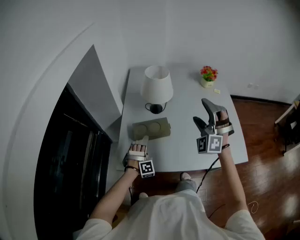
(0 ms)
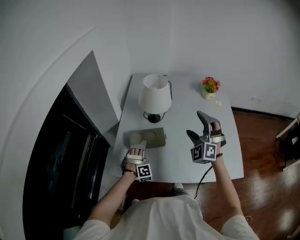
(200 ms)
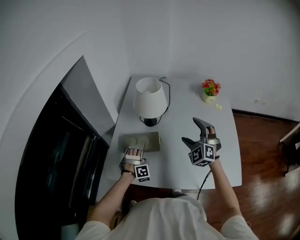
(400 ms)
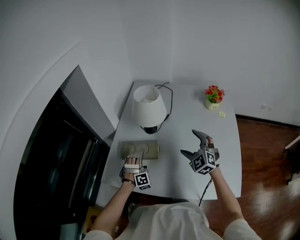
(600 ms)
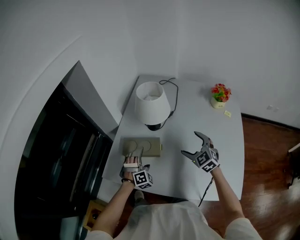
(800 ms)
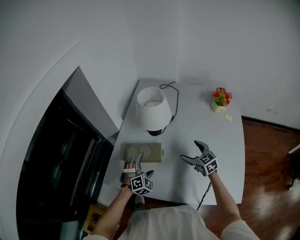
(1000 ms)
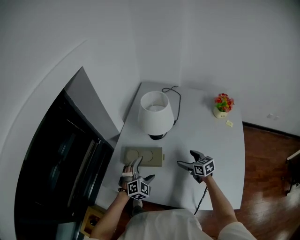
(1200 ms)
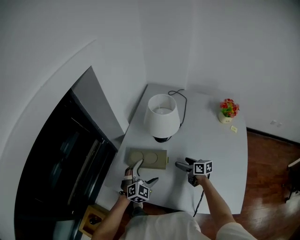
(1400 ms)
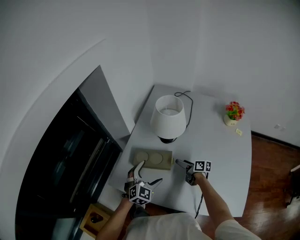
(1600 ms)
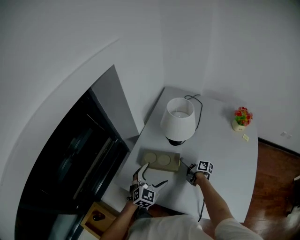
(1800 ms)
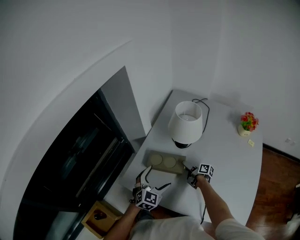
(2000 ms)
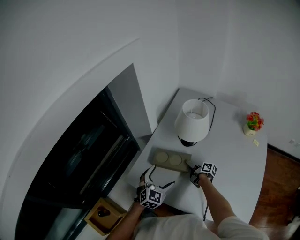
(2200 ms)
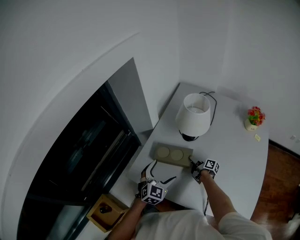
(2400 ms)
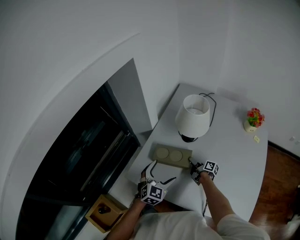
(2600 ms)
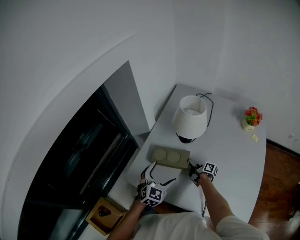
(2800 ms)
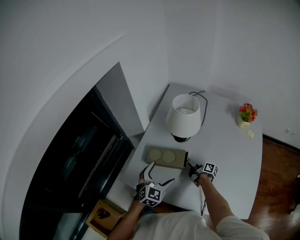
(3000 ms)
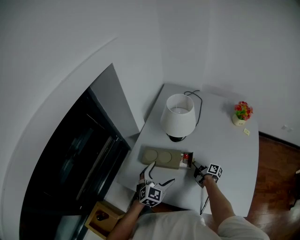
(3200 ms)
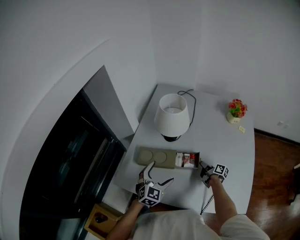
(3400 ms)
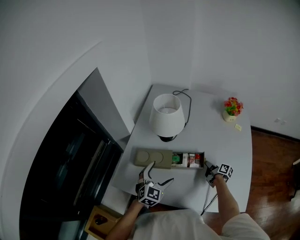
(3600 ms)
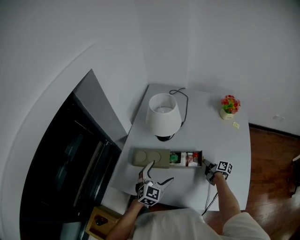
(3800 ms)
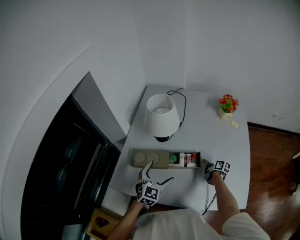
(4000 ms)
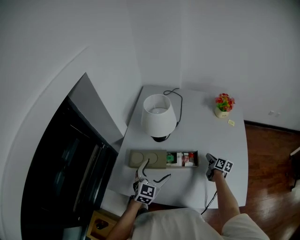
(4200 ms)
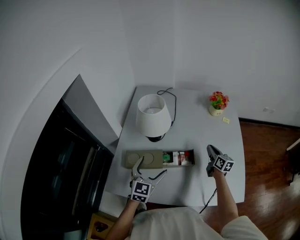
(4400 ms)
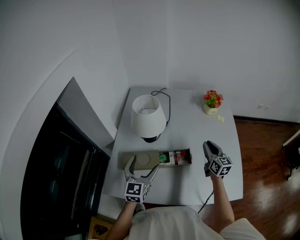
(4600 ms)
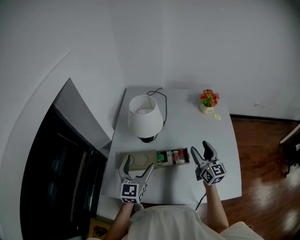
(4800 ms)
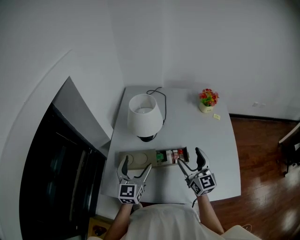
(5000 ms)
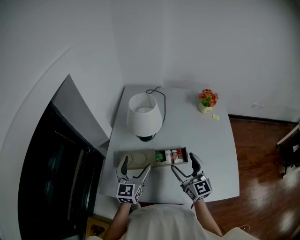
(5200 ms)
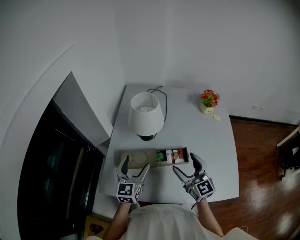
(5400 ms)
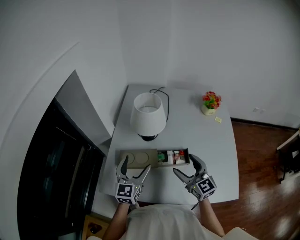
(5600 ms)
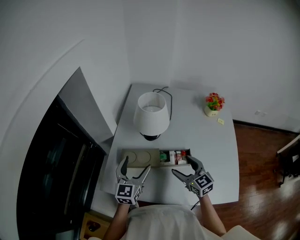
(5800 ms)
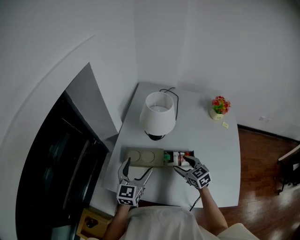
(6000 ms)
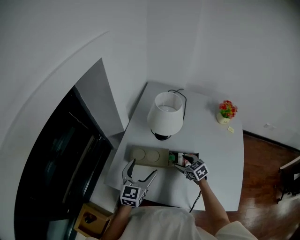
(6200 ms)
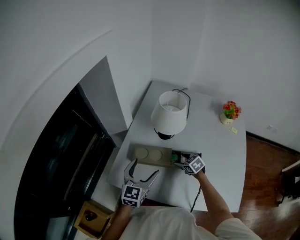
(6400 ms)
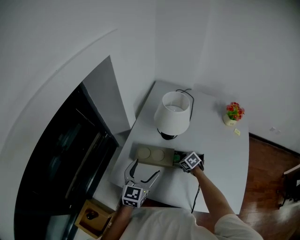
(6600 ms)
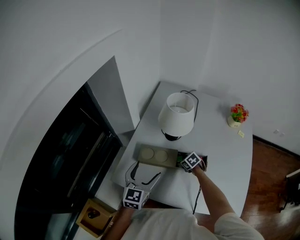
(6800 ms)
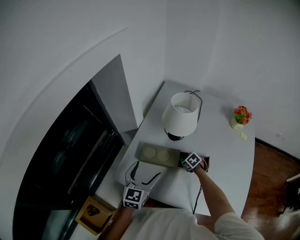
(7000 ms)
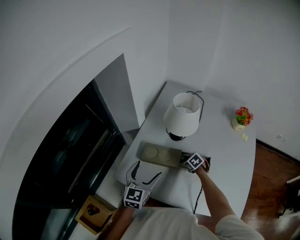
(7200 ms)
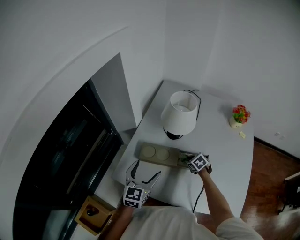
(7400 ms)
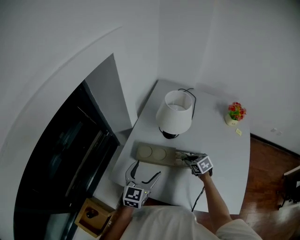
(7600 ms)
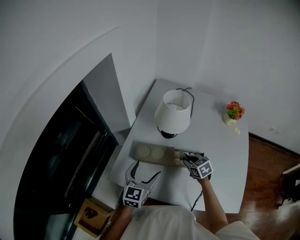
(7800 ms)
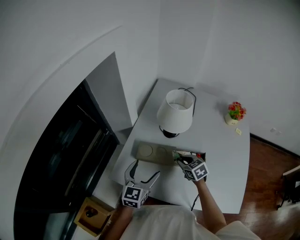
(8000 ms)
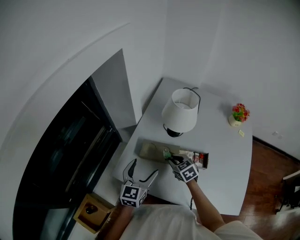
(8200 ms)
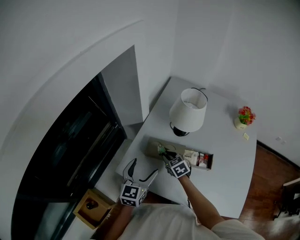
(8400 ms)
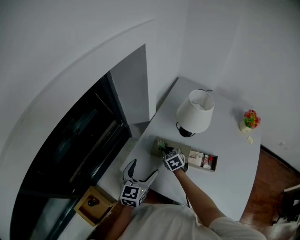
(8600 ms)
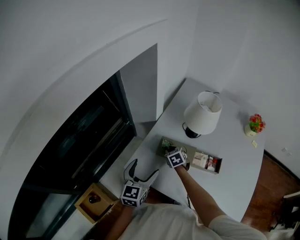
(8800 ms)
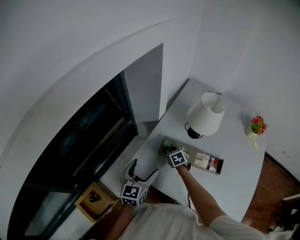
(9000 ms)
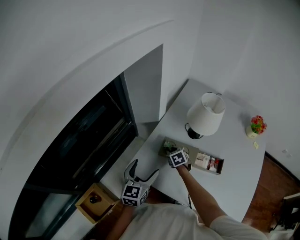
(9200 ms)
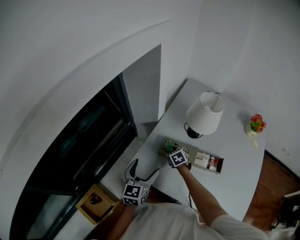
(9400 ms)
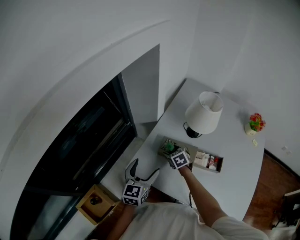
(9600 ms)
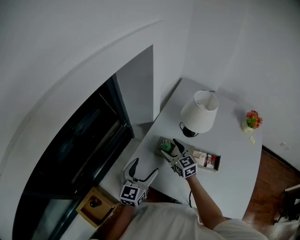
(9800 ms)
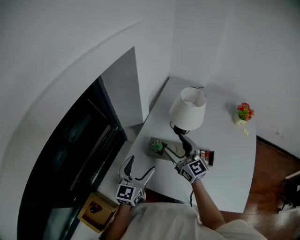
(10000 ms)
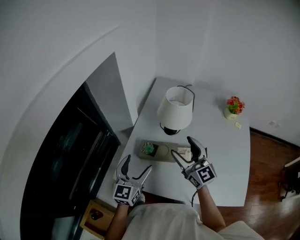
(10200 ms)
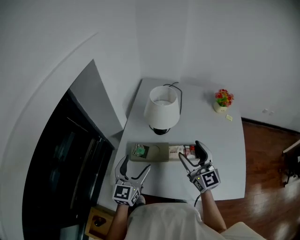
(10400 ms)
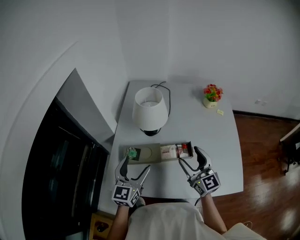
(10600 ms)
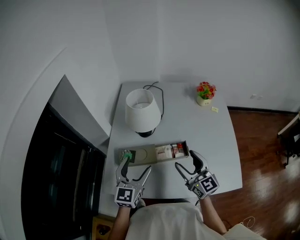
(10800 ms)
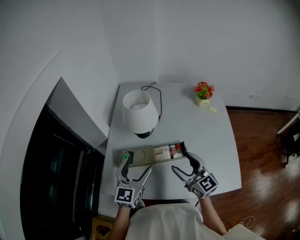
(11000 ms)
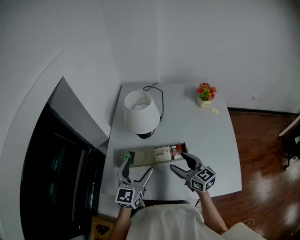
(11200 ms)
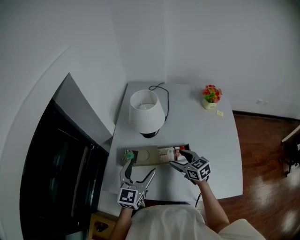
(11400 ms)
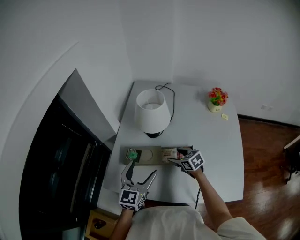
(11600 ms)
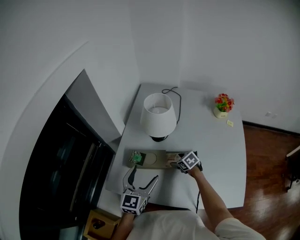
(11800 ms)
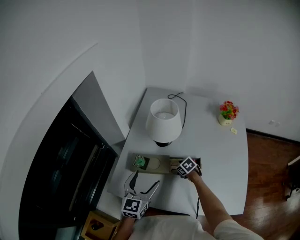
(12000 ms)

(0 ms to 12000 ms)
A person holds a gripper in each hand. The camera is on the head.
0 ms - 1600 ms: The right gripper is displaced downward by some 35 cm, and twists approximately 120 degrees clockwise, seen from behind. The left gripper goes approximately 10 cm upward and to the right, and rotates around the line of its fingers by some 60 degrees, counterclockwise from behind.
1600 ms - 3000 ms: The right gripper rotates some 20 degrees, and closes up.
3000 ms - 4400 ms: The right gripper shifts about 30 cm to the right and upward, and swivels about 50 degrees. Meanwhile the left gripper is displaced to the right by about 5 cm.
4400 ms - 6000 ms: The left gripper goes about 10 cm to the left. The right gripper is displaced to the left by approximately 20 cm, turns by some 50 degrees, and opens.
6000 ms - 7600 ms: The right gripper moves downward, some 10 cm, turns by approximately 20 degrees, and closes.
7600 ms - 9000 ms: The left gripper shifts roughly 15 cm to the left; the right gripper travels to the left by roughly 25 cm.
9000 ms - 10400 ms: The right gripper is displaced upward, to the right and backward by roughly 35 cm, angles its fingers upward, by some 60 degrees, and opens up. The left gripper heads to the right and upward, covering some 10 cm, and turns by roughly 20 degrees.
10400 ms - 12000 ms: The left gripper is displaced to the right by about 5 cm. The right gripper moves downward, roughly 35 cm, and tips its fingers downward by approximately 70 degrees.

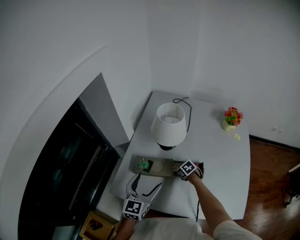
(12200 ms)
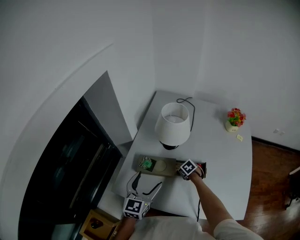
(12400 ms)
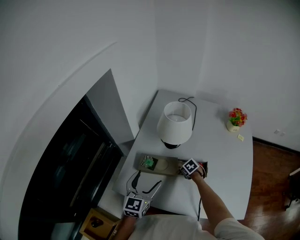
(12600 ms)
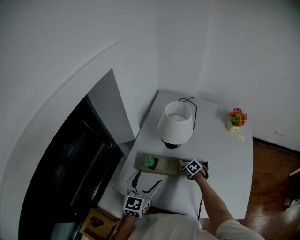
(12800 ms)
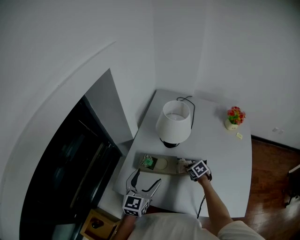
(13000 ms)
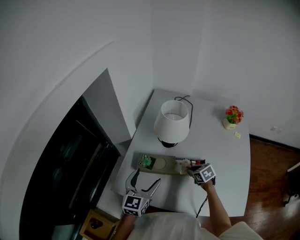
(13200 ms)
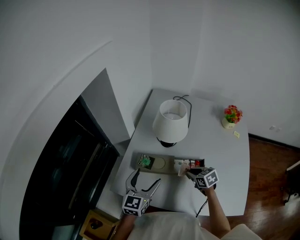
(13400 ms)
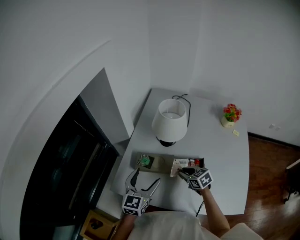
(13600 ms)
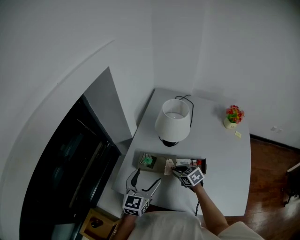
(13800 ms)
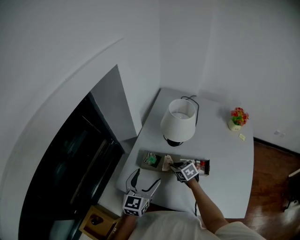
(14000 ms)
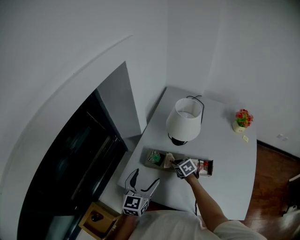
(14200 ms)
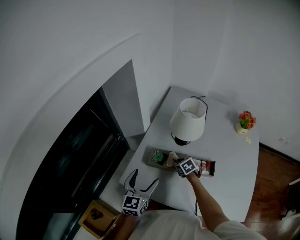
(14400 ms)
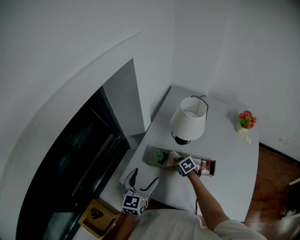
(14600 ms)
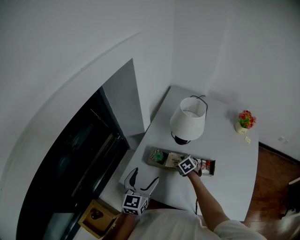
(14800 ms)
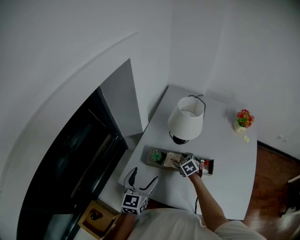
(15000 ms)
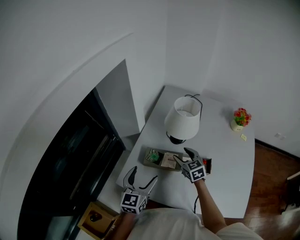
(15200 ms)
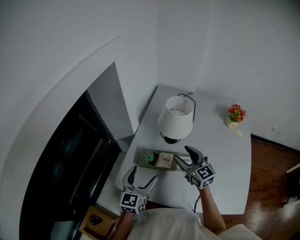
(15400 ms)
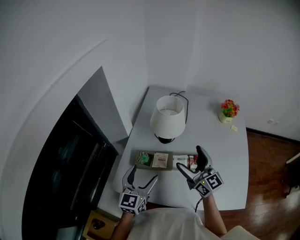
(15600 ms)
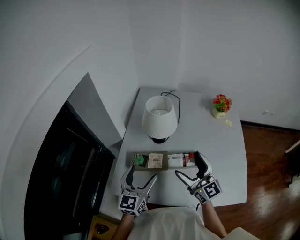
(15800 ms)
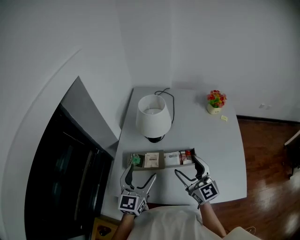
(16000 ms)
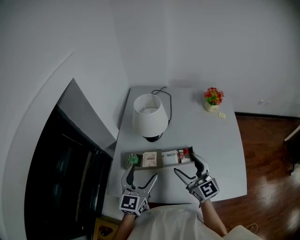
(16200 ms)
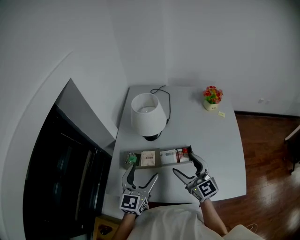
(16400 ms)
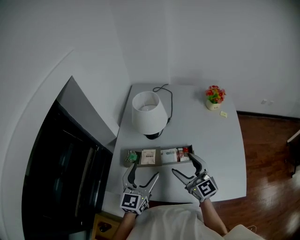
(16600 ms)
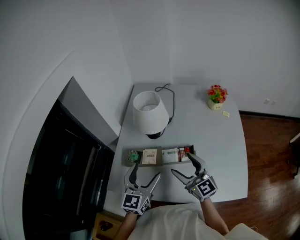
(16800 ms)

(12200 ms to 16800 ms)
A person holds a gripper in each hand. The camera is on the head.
12200 ms - 13800 ms: The right gripper shifts approximately 15 cm upward and to the left, turns by approximately 20 degrees, and closes its fingers.
13800 ms - 15200 ms: The left gripper heads to the left, covering approximately 5 cm. Meanwhile the right gripper travels upward and forward by approximately 10 cm, turns by some 20 degrees, and opens.
15200 ms - 16800 ms: The left gripper goes about 15 cm to the right. The right gripper heads backward, upward and to the right, covering approximately 20 cm, and turns by roughly 30 degrees.

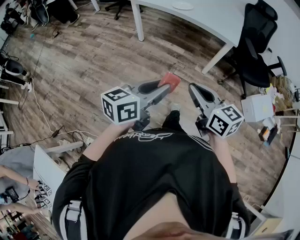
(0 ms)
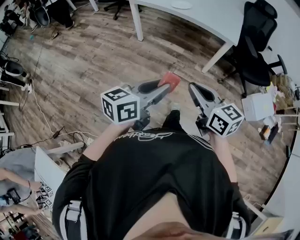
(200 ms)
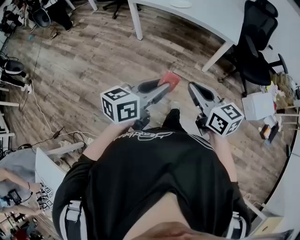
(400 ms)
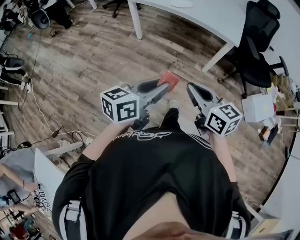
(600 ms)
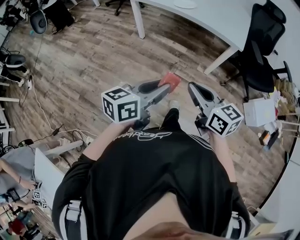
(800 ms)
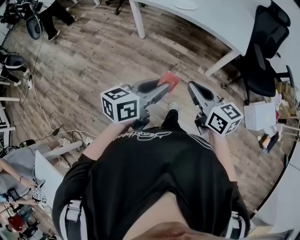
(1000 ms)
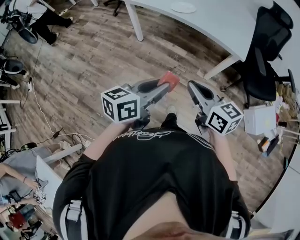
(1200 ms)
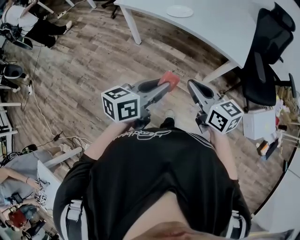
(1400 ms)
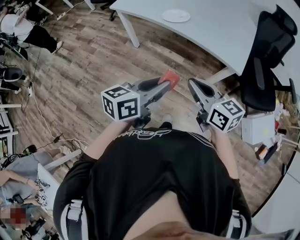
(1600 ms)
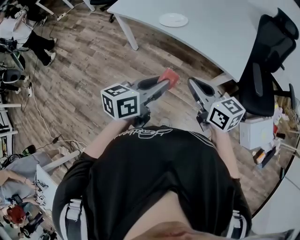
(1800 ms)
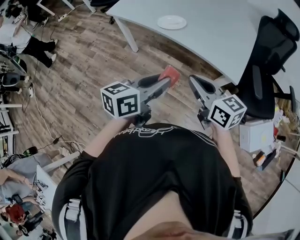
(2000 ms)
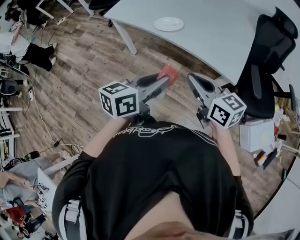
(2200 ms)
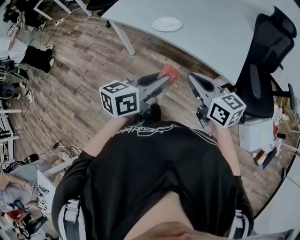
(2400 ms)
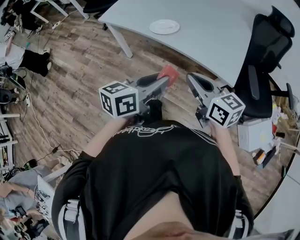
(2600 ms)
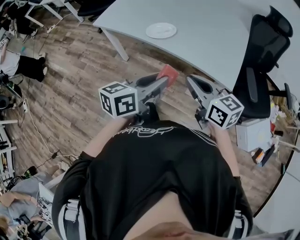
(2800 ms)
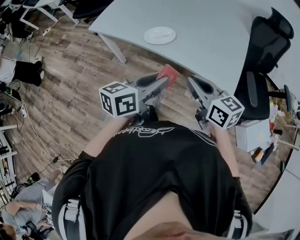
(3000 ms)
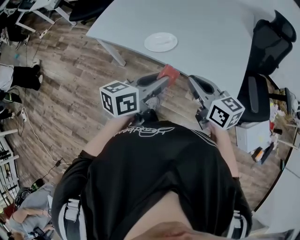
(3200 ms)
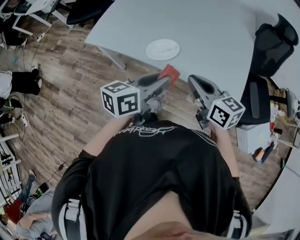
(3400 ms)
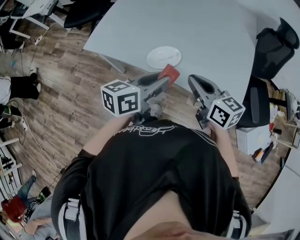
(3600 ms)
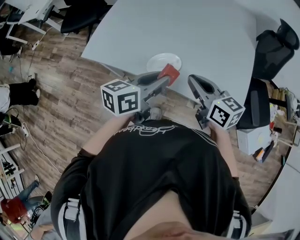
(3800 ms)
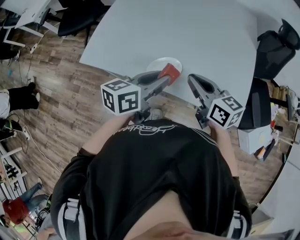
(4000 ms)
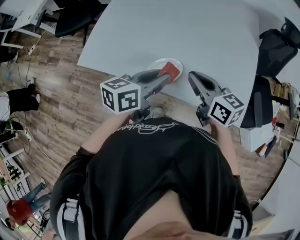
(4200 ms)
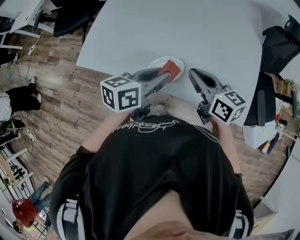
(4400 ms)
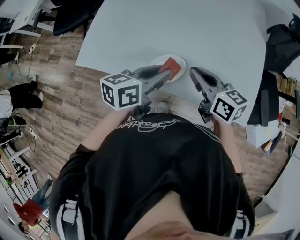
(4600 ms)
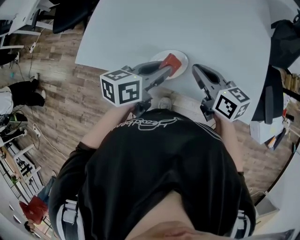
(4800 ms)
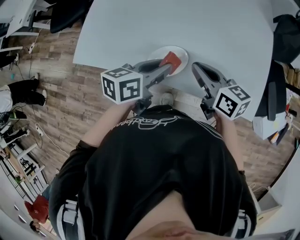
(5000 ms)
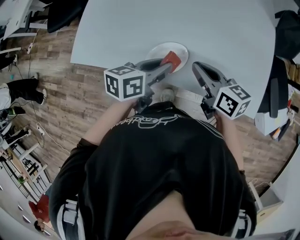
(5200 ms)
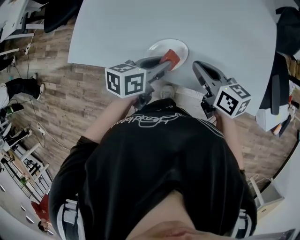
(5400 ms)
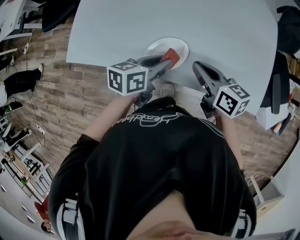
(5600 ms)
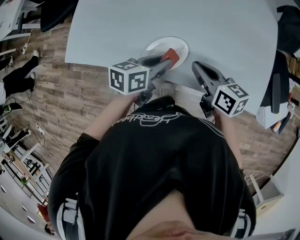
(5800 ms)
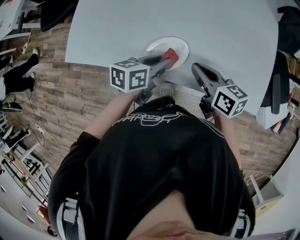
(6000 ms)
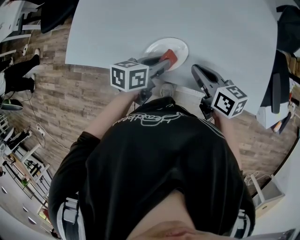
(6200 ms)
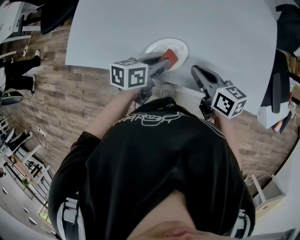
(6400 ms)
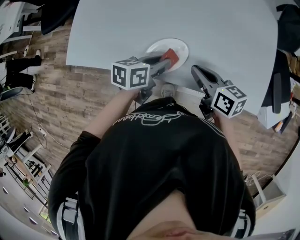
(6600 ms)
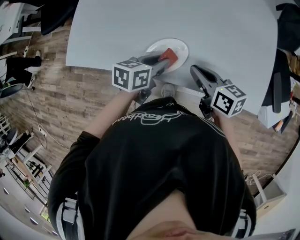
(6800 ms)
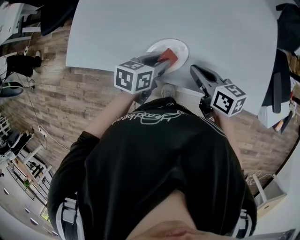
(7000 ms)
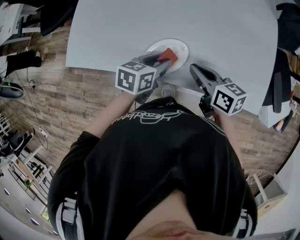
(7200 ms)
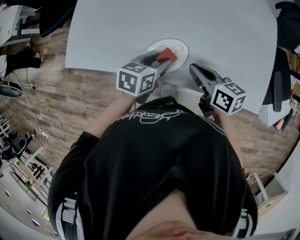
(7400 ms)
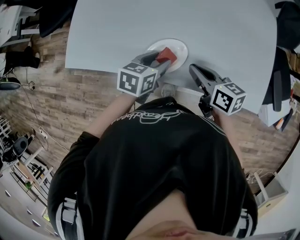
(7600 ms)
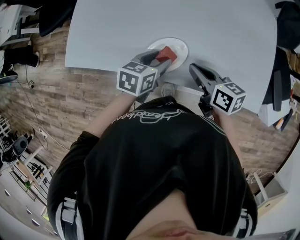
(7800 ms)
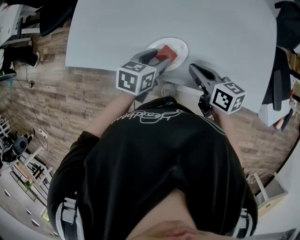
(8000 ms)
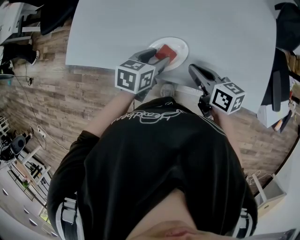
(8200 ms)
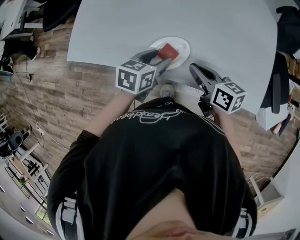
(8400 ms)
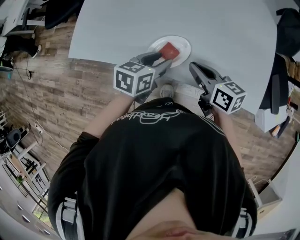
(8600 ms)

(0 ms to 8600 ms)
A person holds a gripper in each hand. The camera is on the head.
0 ms - 1400 ms: Both grippers move forward, approximately 25 cm.
1400 ms - 2800 ms: Both grippers travel together forward, about 20 cm.
2800 ms - 4400 ms: The two grippers go about 30 cm forward.
4400 ms - 5800 ms: The grippers both shift downward by roughly 10 cm.
5800 ms - 8600 ms: The grippers move only a little.
